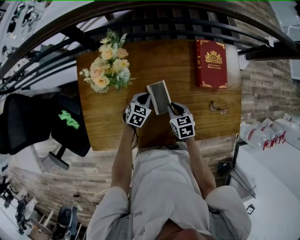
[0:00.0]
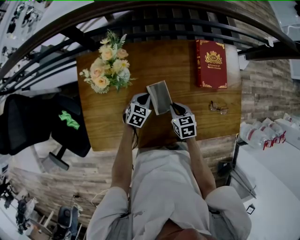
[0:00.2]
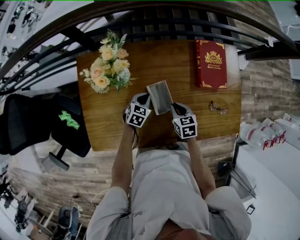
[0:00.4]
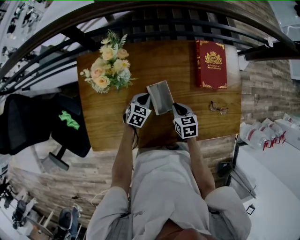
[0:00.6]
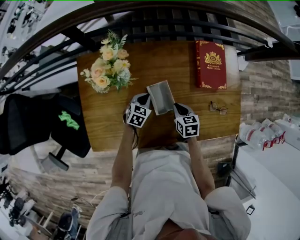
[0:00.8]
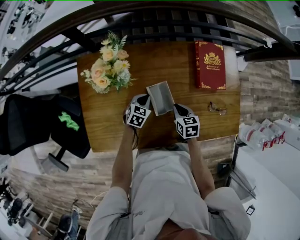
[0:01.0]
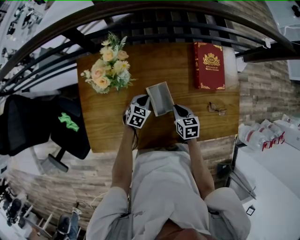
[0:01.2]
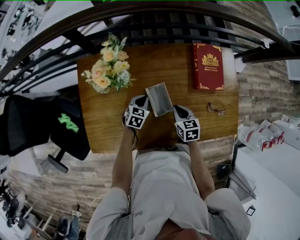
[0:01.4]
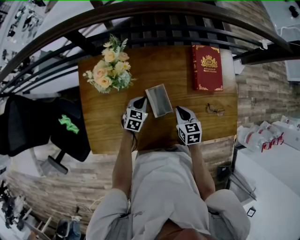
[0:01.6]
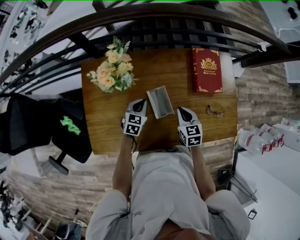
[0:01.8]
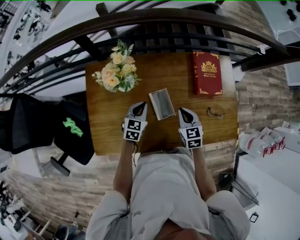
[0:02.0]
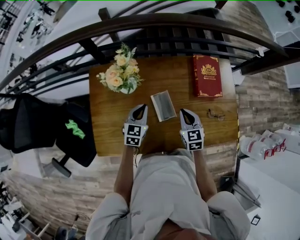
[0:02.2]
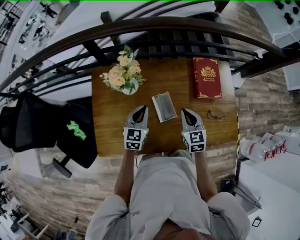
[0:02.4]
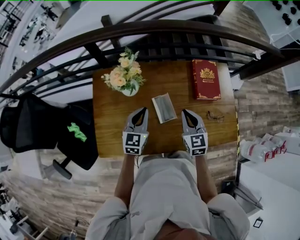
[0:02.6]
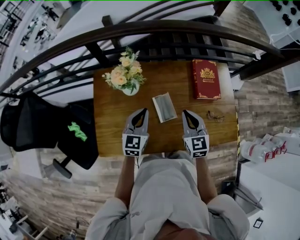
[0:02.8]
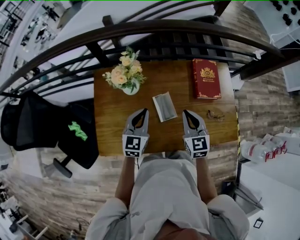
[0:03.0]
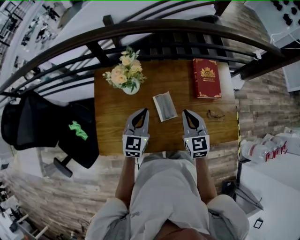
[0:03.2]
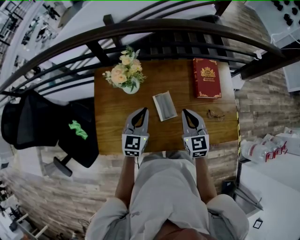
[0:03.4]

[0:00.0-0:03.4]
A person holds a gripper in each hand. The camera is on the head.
0:00.0 to 0:01.6: The right gripper moves approximately 5 cm.
0:01.6 to 0:03.4: Both grippers move upward, about 20 cm. The right gripper swivels roughly 30 degrees, while the left gripper rotates about 30 degrees.

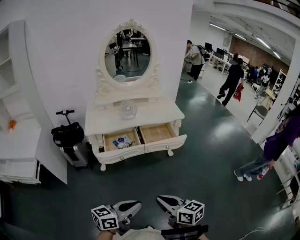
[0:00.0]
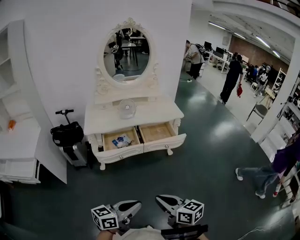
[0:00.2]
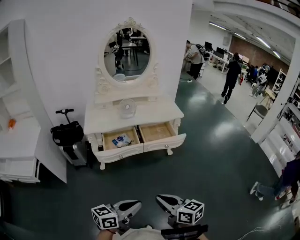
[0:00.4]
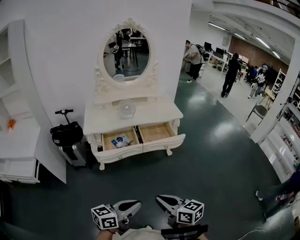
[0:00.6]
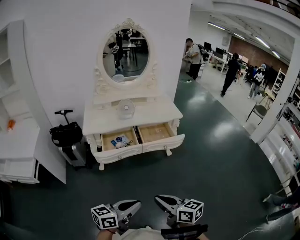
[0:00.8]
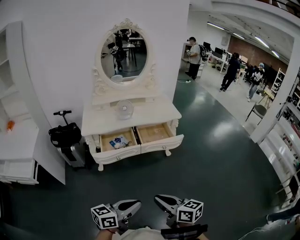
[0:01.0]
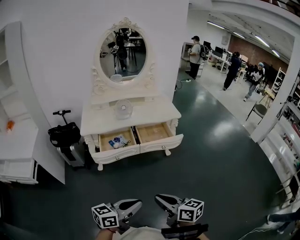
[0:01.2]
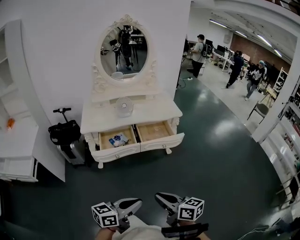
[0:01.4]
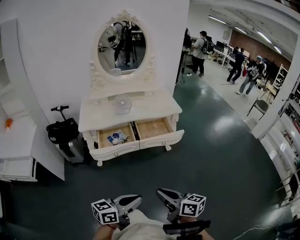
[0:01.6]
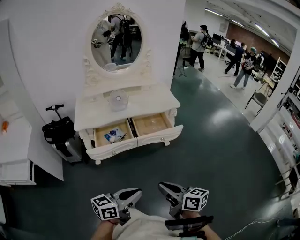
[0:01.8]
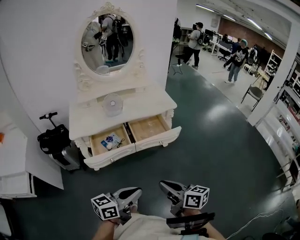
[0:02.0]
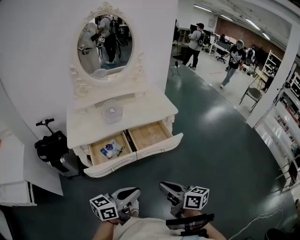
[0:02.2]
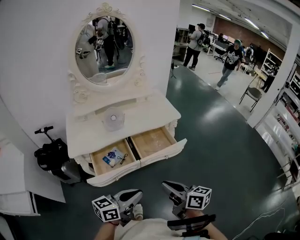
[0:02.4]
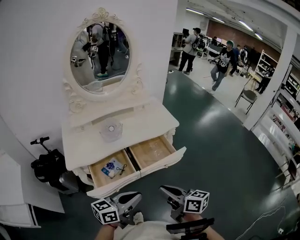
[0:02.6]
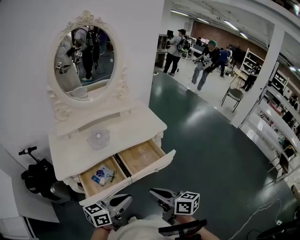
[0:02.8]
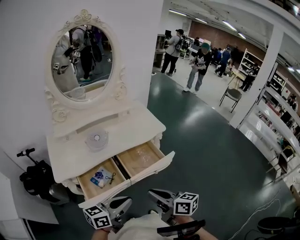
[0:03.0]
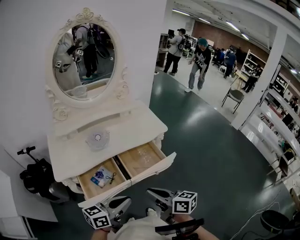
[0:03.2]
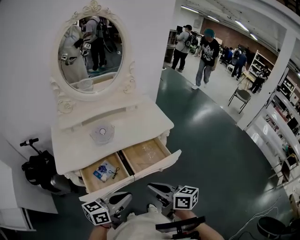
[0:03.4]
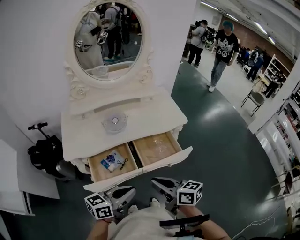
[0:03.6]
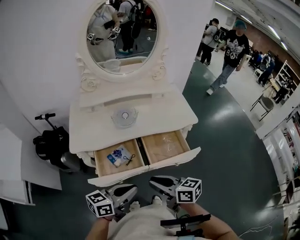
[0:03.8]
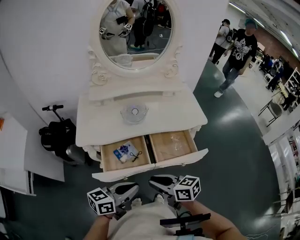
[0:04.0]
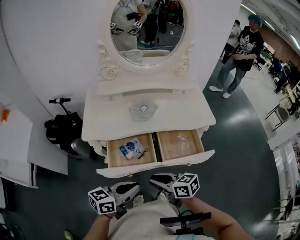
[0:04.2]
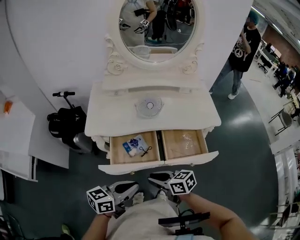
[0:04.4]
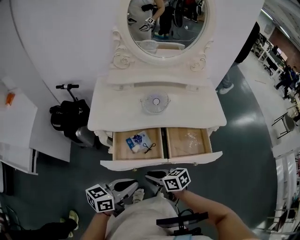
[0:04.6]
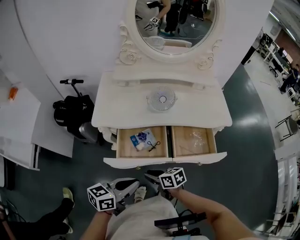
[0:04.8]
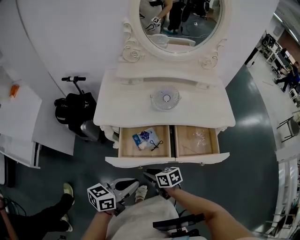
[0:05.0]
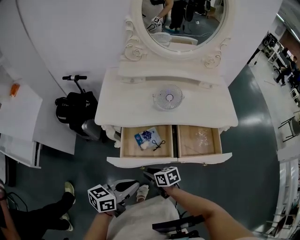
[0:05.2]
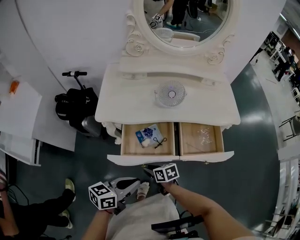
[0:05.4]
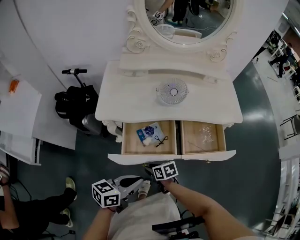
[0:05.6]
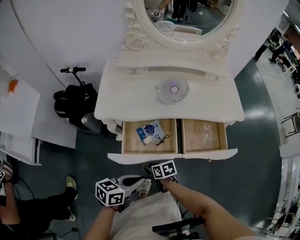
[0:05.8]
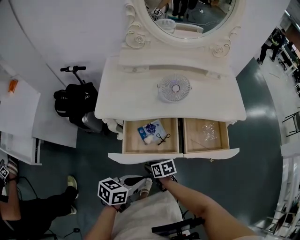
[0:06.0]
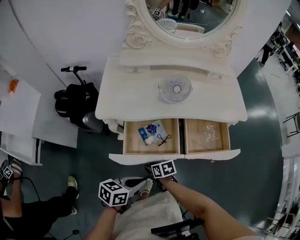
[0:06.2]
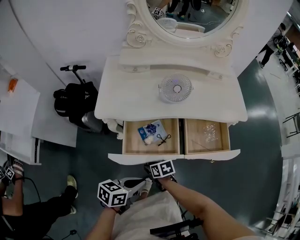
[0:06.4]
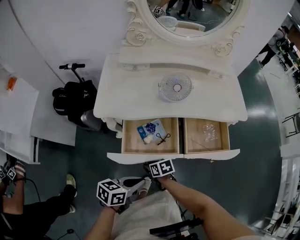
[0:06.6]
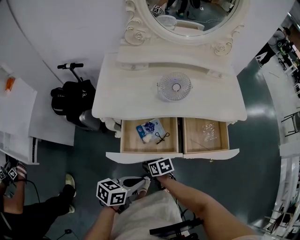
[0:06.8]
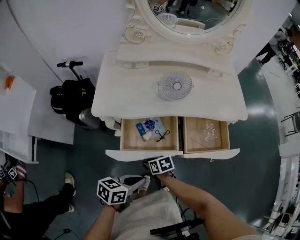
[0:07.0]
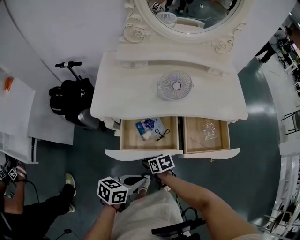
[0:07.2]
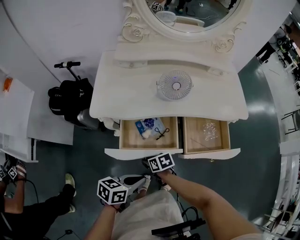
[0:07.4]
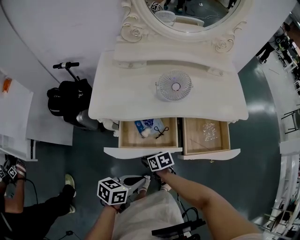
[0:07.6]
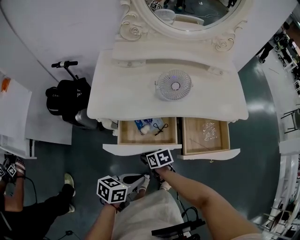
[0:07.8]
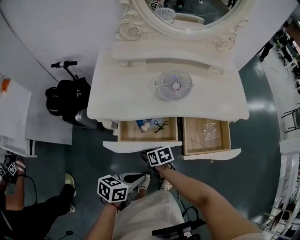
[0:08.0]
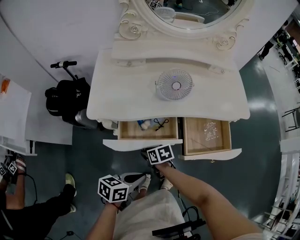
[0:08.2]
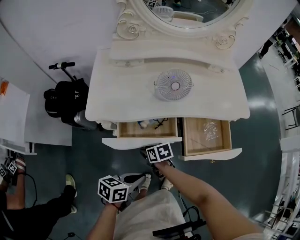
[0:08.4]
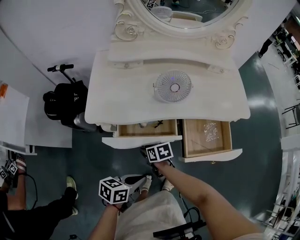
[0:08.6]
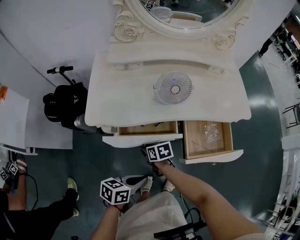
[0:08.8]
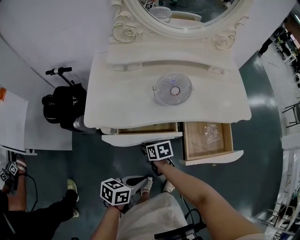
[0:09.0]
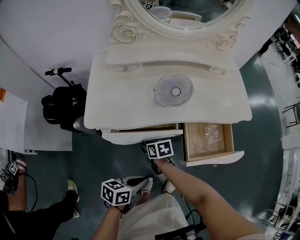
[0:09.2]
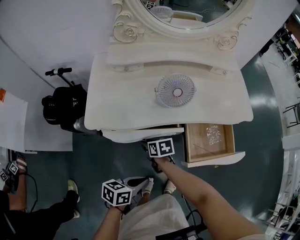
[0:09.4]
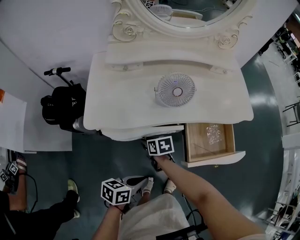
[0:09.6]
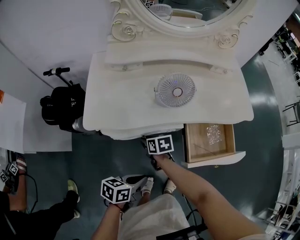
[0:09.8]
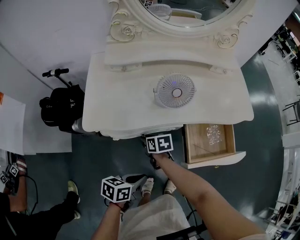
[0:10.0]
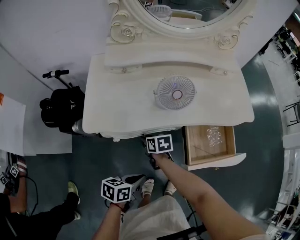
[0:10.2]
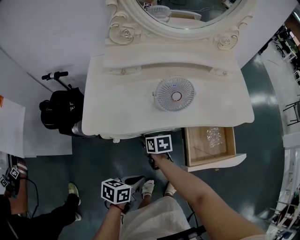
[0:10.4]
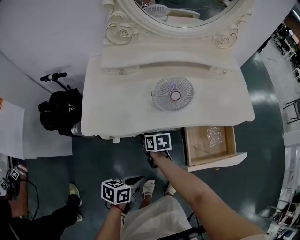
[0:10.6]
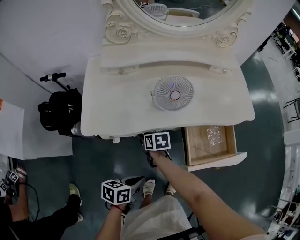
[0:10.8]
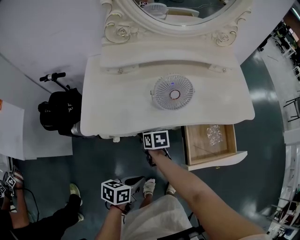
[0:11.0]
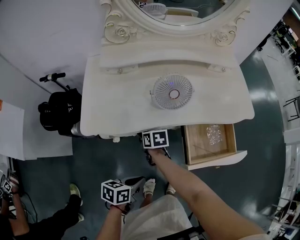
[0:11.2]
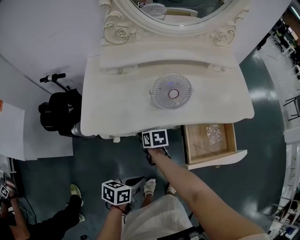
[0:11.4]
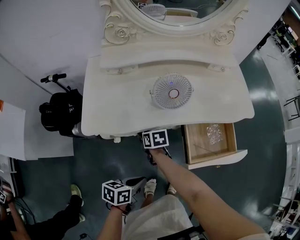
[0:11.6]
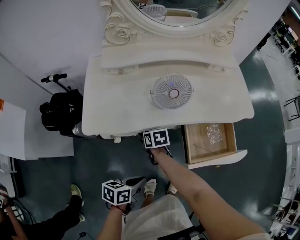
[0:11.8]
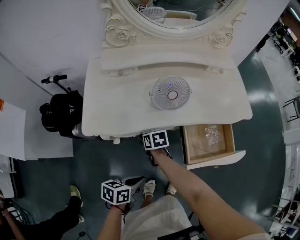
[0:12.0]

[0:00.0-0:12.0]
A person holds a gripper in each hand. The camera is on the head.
0:00.0 to 0:01.6: The left gripper moves roughly 5 cm; the right gripper moves about 5 cm.
0:01.6 to 0:03.0: Both grippers move forward, about 30 cm.
0:03.0 to 0:04.4: The right gripper shifts by some 20 cm, and turns by some 50 degrees; the left gripper ends up roughly 10 cm from where it was, and changes its angle by approximately 20 degrees.
0:04.4 to 0:06.0: The right gripper goes about 20 cm downward, and rotates roughly 30 degrees. Meanwhile the left gripper travels downward by some 10 cm, and turns by roughly 20 degrees.
0:06.0 to 0:07.6: The grippers make only small movements.
0:07.6 to 0:09.0: The right gripper changes place by about 10 cm.
0:09.0 to 0:10.4: The right gripper travels forward by roughly 10 cm; the left gripper moves some 5 cm.
0:10.4 to 0:12.0: The grippers move only a little.

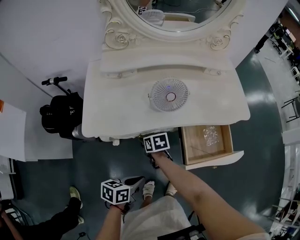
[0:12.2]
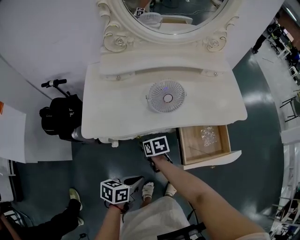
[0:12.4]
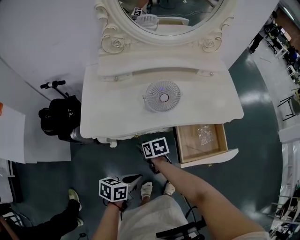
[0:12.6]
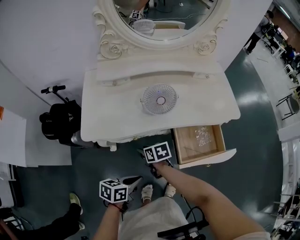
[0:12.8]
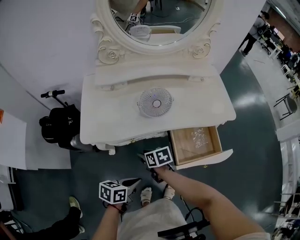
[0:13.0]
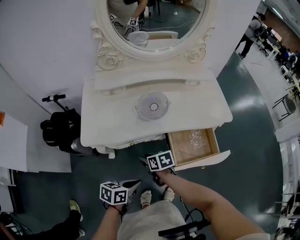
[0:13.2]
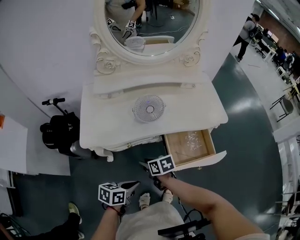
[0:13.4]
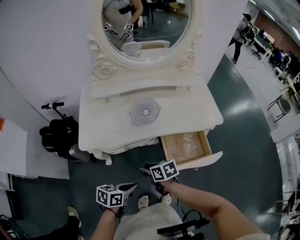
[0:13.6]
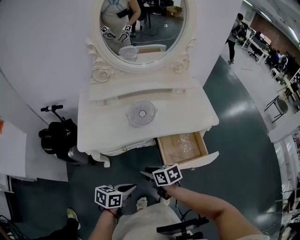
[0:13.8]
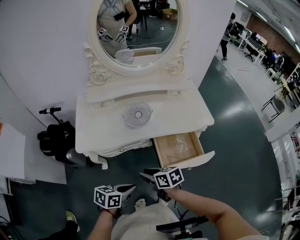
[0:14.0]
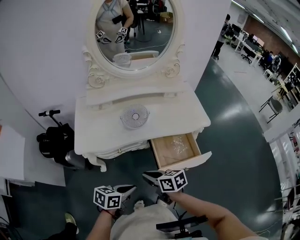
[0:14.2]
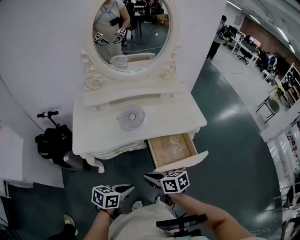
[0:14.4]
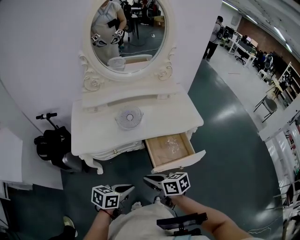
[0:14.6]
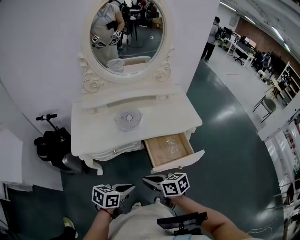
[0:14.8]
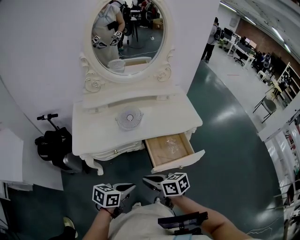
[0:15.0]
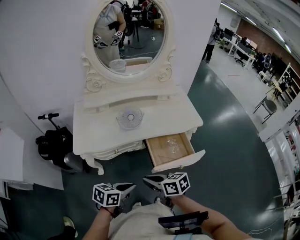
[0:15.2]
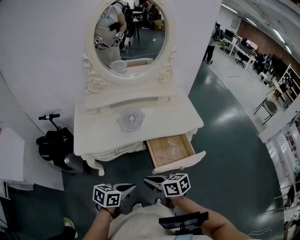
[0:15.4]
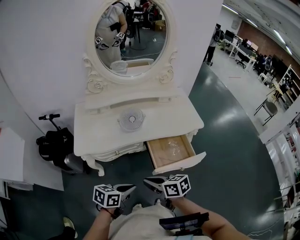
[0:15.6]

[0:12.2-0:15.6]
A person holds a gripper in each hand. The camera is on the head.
0:12.2 to 0:13.8: The left gripper heads upward, covering approximately 10 cm, while the right gripper moves upward, backward and to the right, some 25 cm.
0:13.8 to 0:15.6: The left gripper shifts some 5 cm upward, while the right gripper heads upward and backward, covering some 10 cm, and closes up.

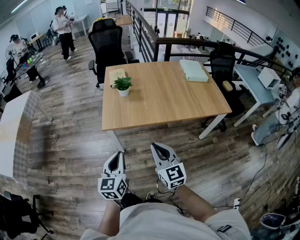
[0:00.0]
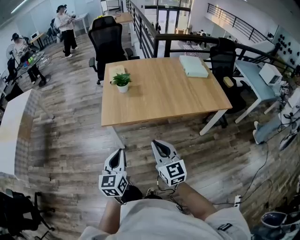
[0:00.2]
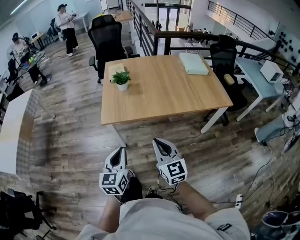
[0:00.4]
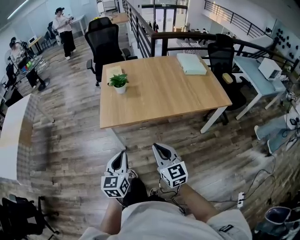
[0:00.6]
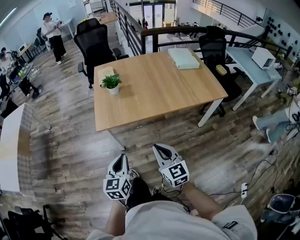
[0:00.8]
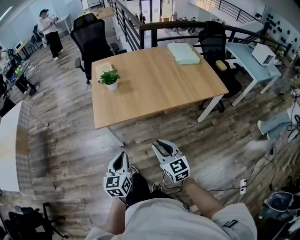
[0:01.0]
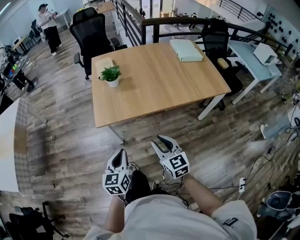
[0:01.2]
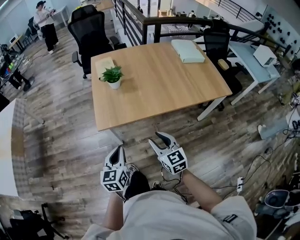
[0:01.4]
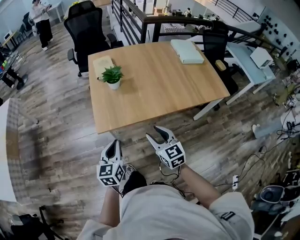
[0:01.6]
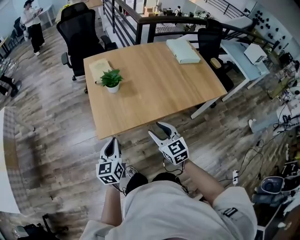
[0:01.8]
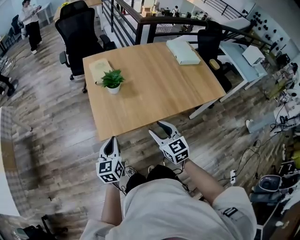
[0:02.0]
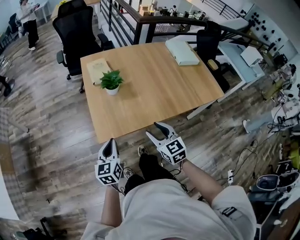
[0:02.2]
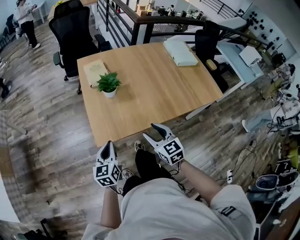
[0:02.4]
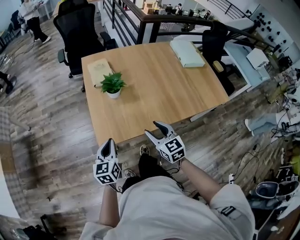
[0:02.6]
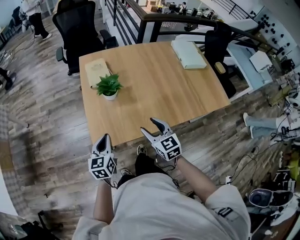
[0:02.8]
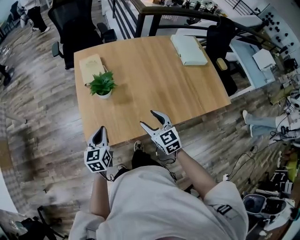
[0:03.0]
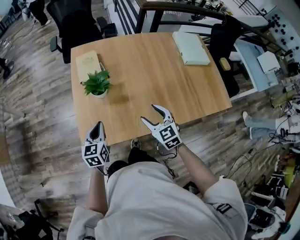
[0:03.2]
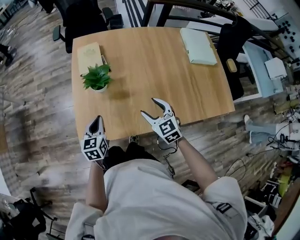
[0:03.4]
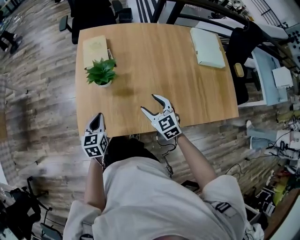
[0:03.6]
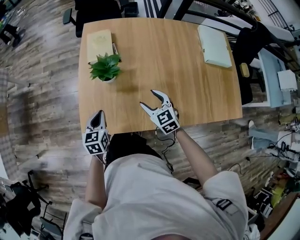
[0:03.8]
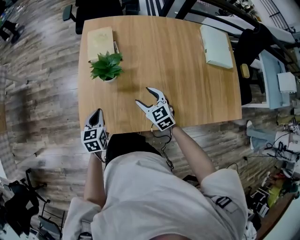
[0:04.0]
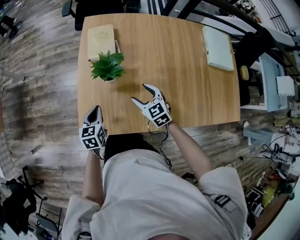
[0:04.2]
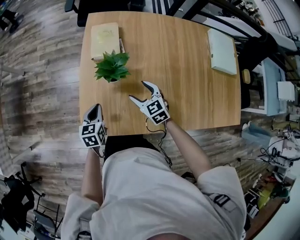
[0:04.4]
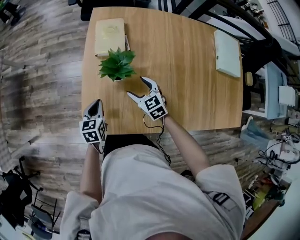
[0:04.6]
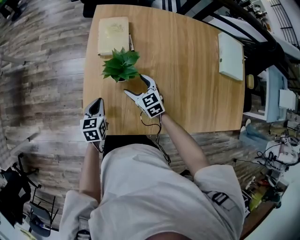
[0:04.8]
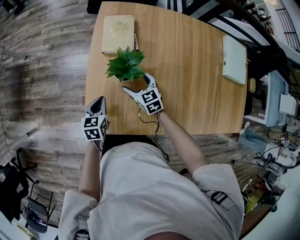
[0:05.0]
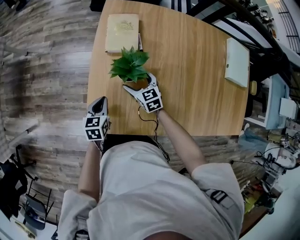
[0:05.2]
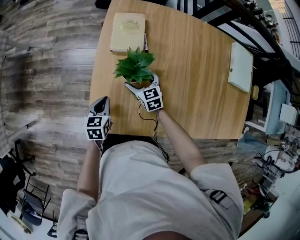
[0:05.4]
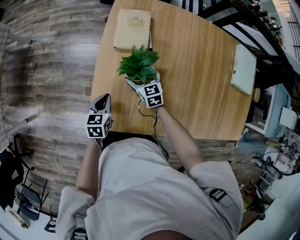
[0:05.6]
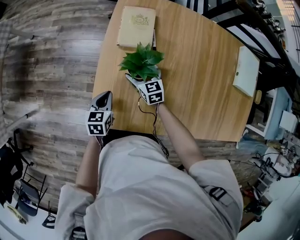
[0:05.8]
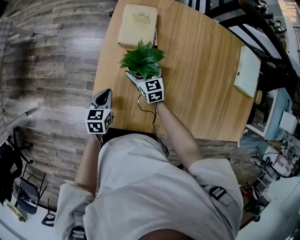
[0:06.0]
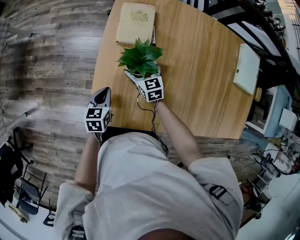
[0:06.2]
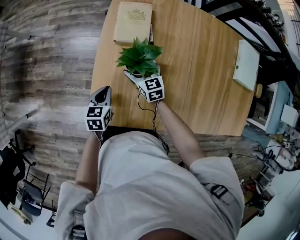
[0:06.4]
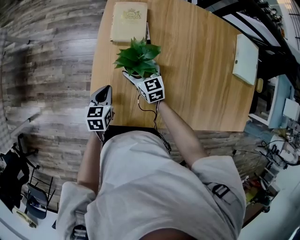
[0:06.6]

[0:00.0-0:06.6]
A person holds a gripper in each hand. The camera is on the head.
0:00.0 to 0:01.6: Both grippers travel together forward and downward, approximately 15 cm. The right gripper opens its fingers.
0:01.6 to 0:03.2: The two grippers go about 25 cm forward.
0:03.2 to 0:05.0: The left gripper goes roughly 15 cm downward, forward and to the left, while the right gripper heads forward, downward and to the left, covering roughly 30 cm, and turns by approximately 20 degrees.
0:05.0 to 0:06.6: The right gripper shifts by some 5 cm.
